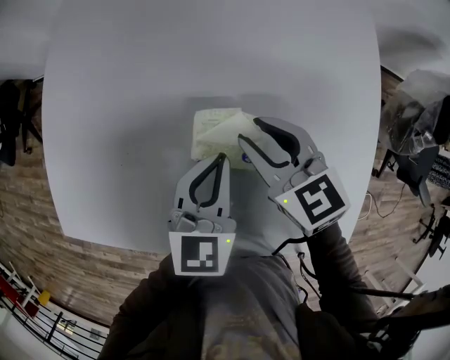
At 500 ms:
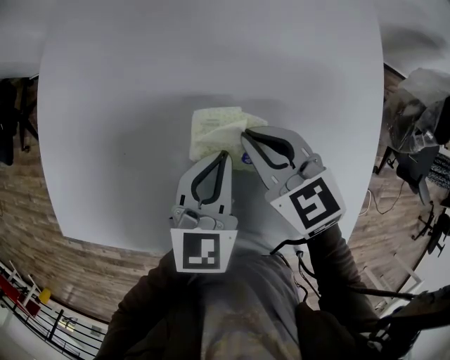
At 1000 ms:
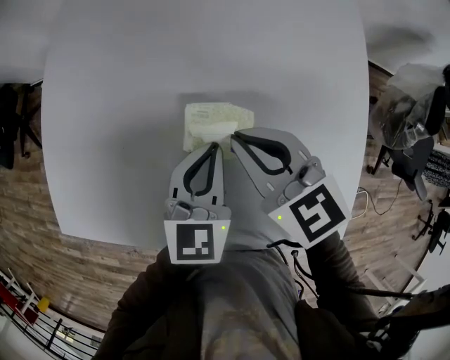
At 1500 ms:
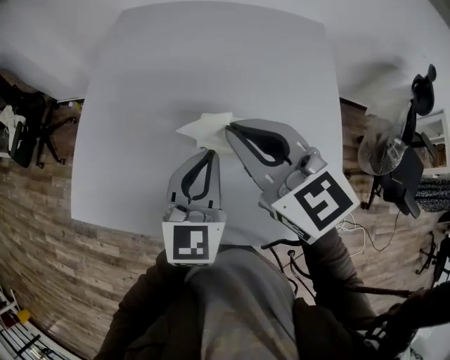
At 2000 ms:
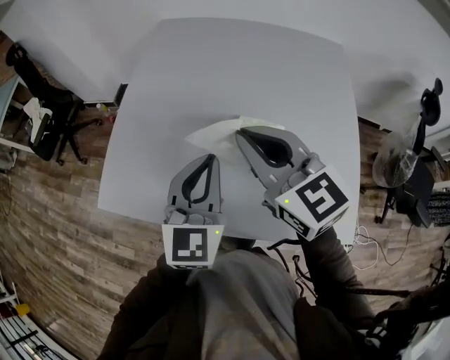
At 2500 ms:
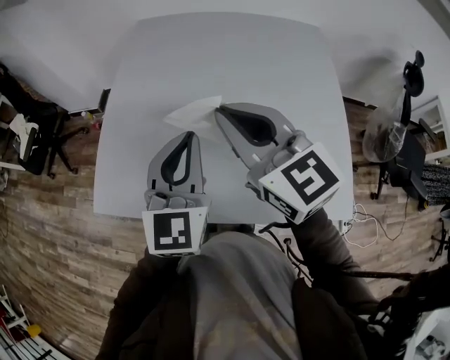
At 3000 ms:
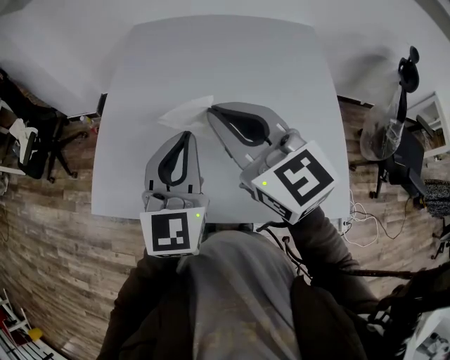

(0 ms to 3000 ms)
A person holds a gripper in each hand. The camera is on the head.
0 ms - 1500 ms: The grippers both shift upward and backward by roughly 20 cm. The right gripper swivels roughly 20 degrees, and closes up.
1500 ms - 3000 ms: Both grippers travel together to the left and upward, about 15 cm.

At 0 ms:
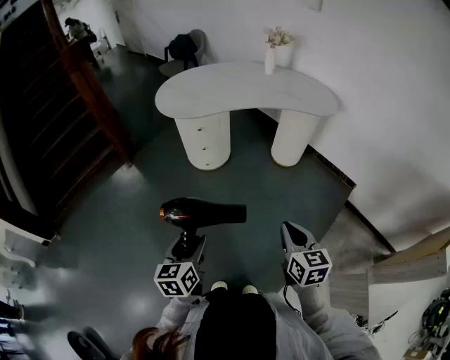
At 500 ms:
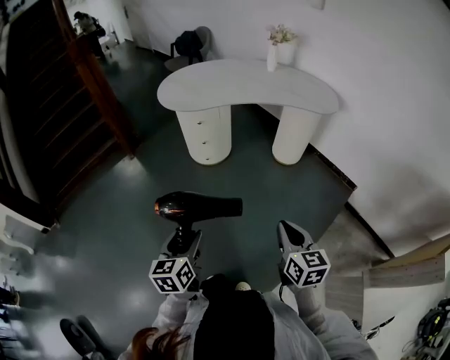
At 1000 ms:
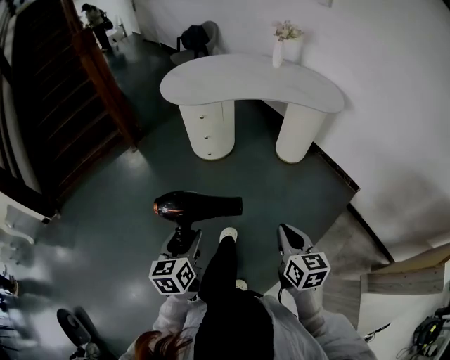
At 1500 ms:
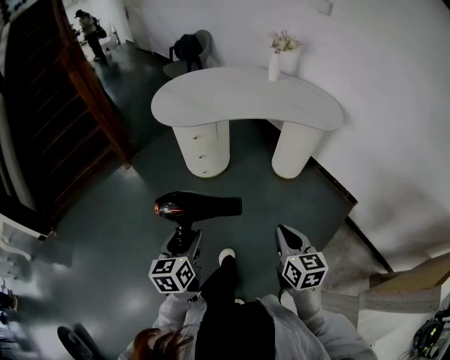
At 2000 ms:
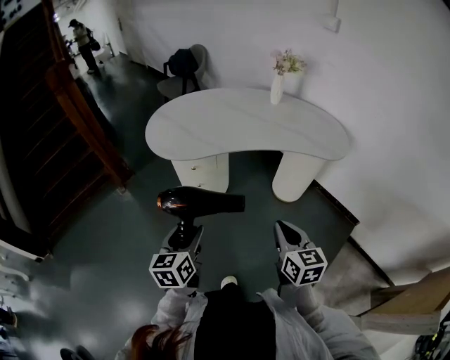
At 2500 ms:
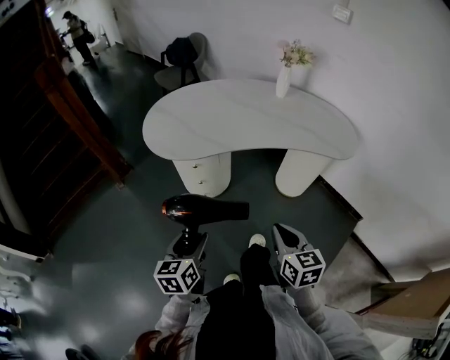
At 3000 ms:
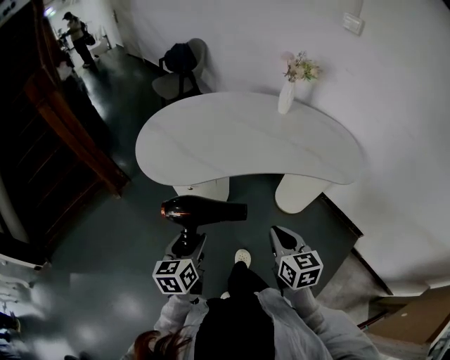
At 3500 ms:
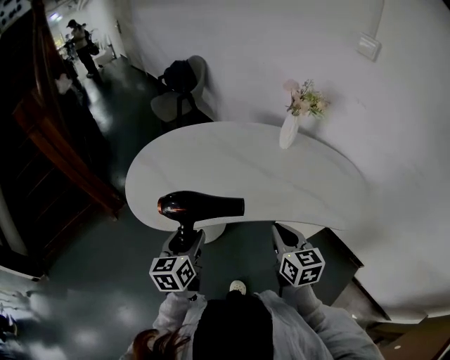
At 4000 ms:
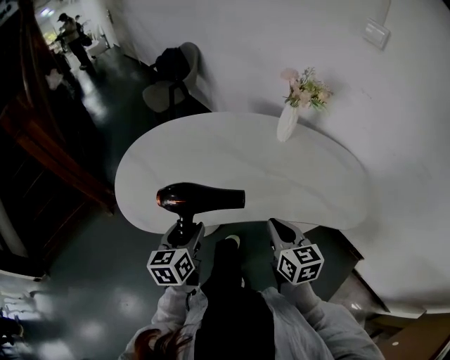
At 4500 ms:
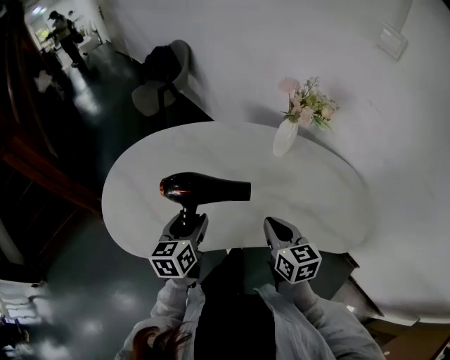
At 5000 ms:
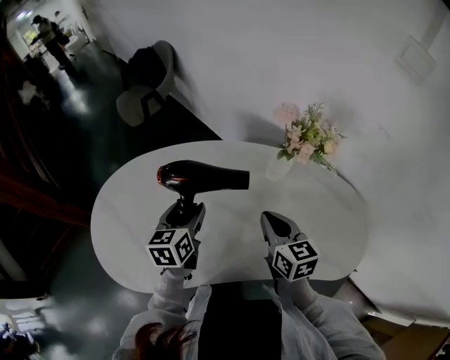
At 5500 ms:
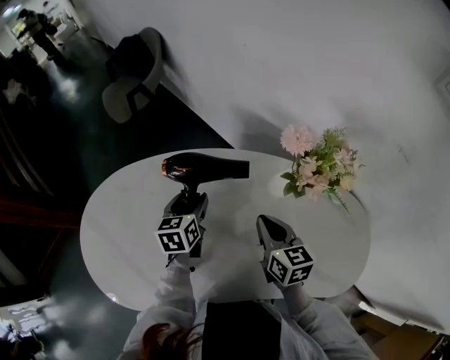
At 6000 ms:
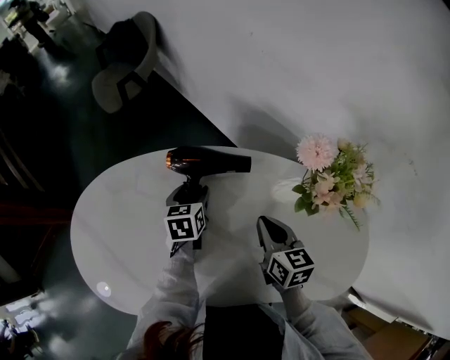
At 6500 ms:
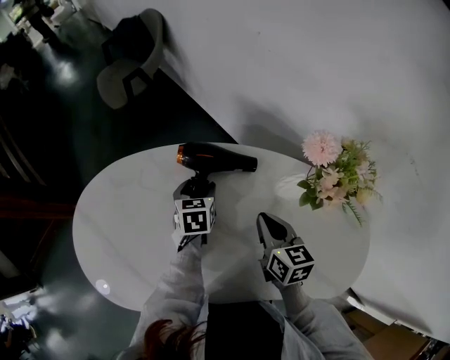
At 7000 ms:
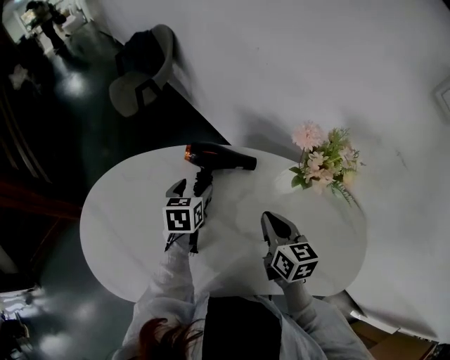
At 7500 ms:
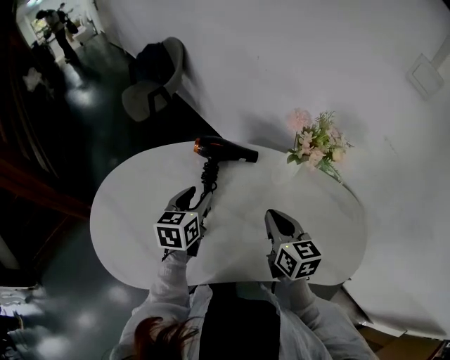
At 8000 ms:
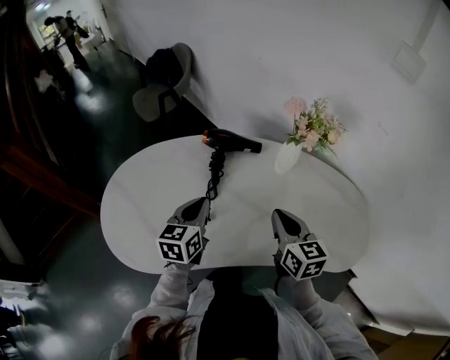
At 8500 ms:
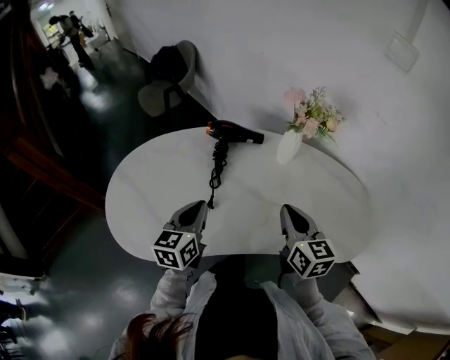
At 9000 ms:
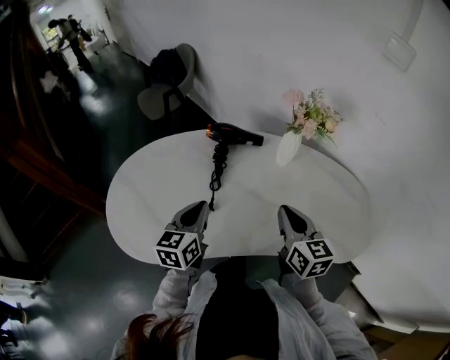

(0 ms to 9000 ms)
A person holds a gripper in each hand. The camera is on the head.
0 ms - 2000 ms: Both grippers move forward, about 25 cm.
2000 ms - 4500 ms: The two grippers travel together, forward, approximately 50 cm.
4500 ms - 7000 ms: The two grippers go some 25 cm forward.
7000 ms - 9000 ms: Both grippers move backward and upward, about 25 cm. The left gripper changes its angle by roughly 20 degrees, and closes its fingers.

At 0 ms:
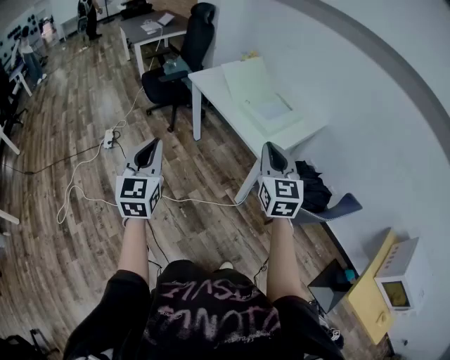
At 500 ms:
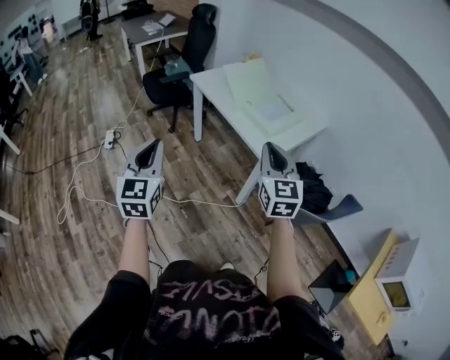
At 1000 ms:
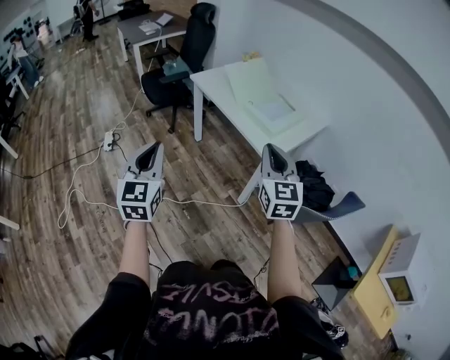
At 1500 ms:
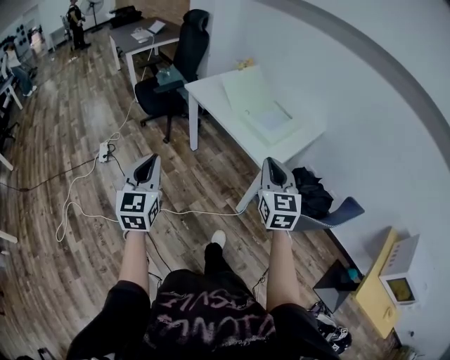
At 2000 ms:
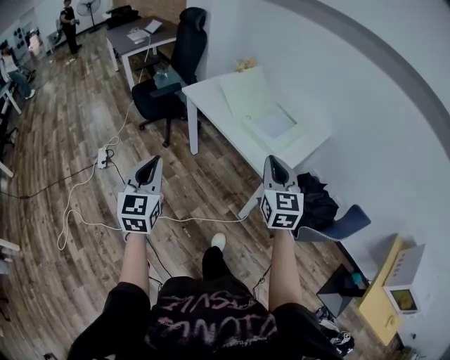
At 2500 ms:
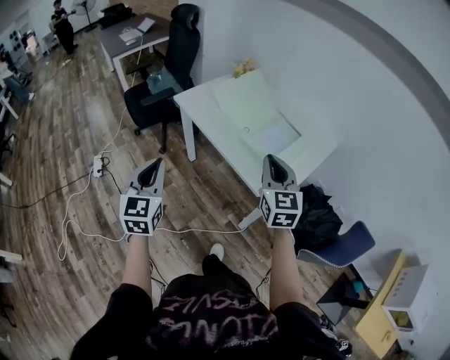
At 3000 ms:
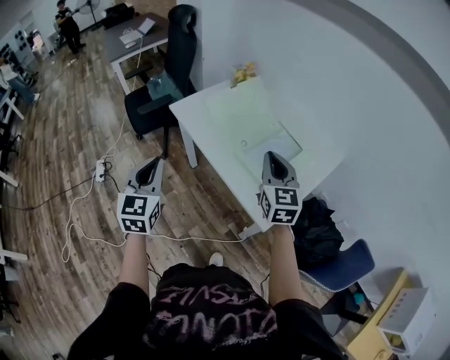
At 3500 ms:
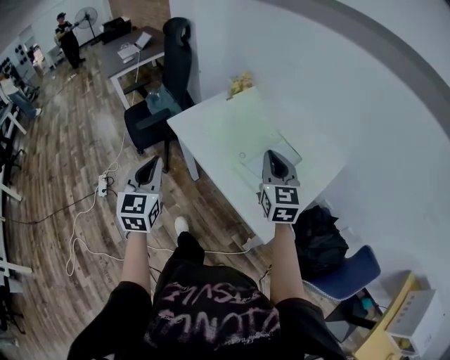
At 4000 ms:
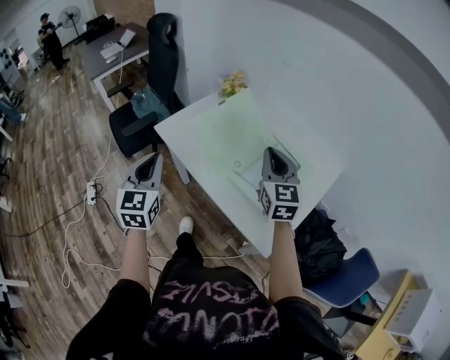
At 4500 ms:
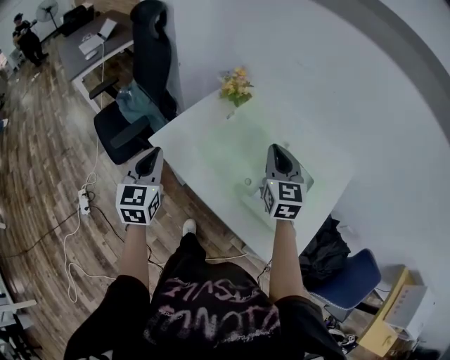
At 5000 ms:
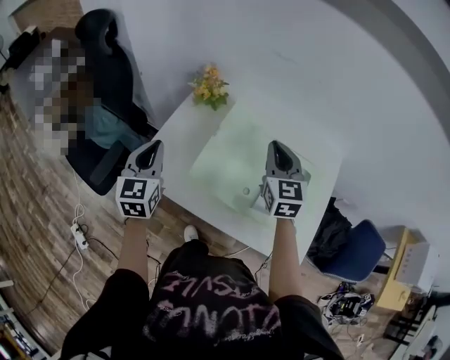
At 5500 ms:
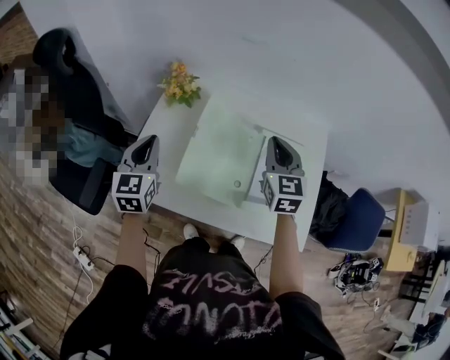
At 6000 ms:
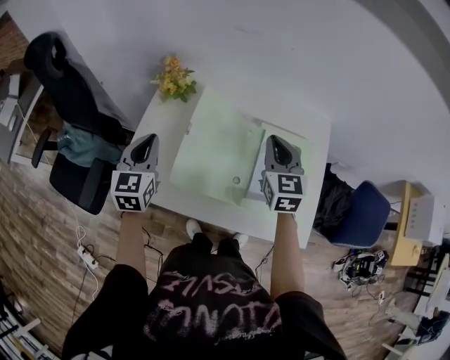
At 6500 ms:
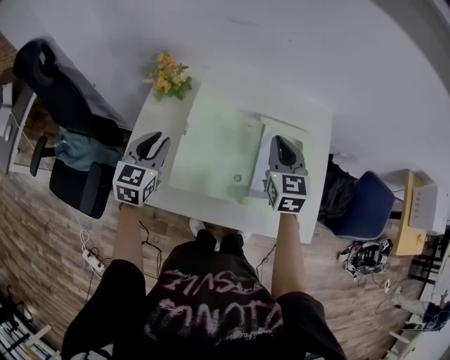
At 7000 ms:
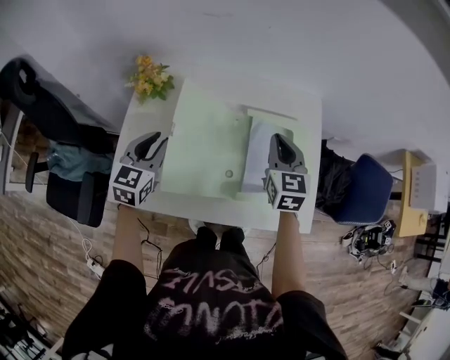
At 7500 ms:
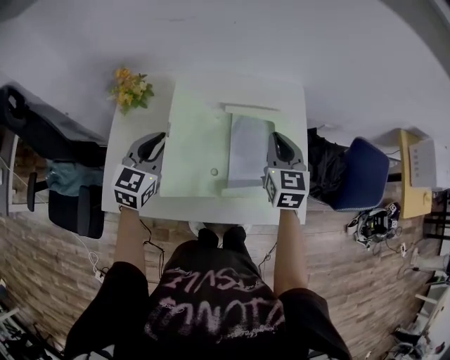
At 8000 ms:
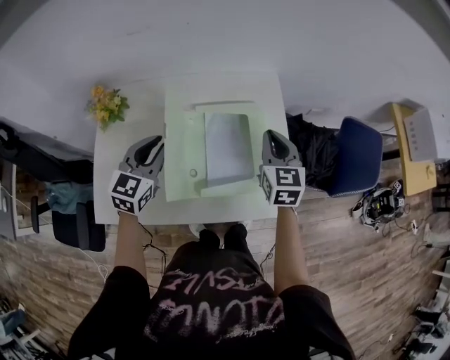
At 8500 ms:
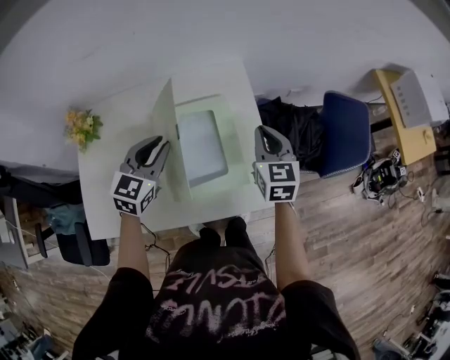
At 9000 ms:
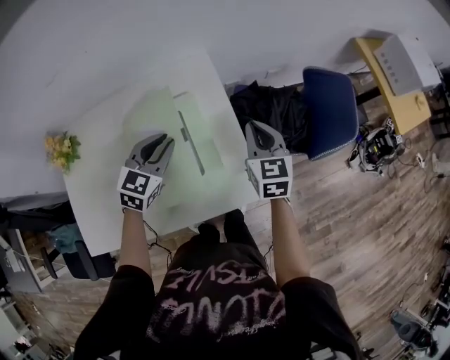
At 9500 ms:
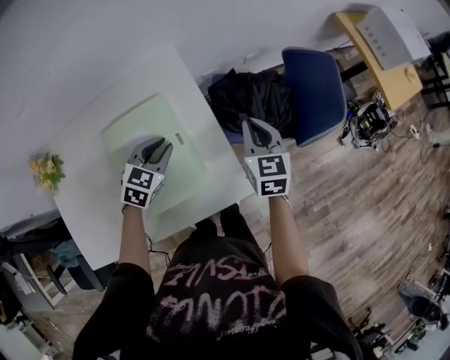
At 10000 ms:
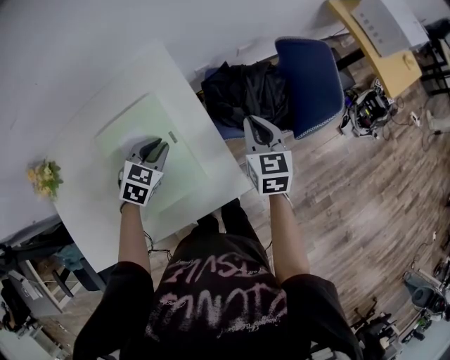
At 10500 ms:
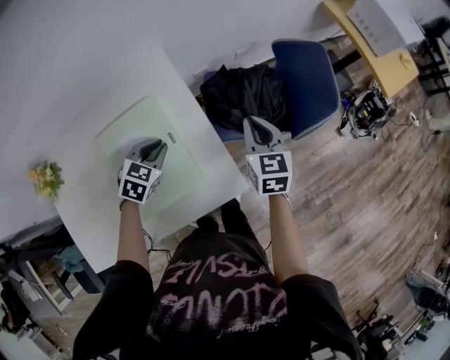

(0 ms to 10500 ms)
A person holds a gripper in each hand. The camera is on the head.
0 ms - 2000 ms: Both grippers travel together forward, about 10 cm.
2000 ms - 4000 ms: The two grippers go roughly 35 cm forward.
4000 ms - 6500 ms: The left gripper ends up about 35 cm from where it was, swivels some 50 degrees, and opens. Meanwhile the right gripper changes place by some 15 cm, and turns by roughly 40 degrees.
6500 ms - 8500 ms: Both grippers move to the right, roughly 30 cm. The left gripper swivels about 30 degrees.
8500 ms - 10500 ms: The right gripper shifts roughly 15 cm to the right; the left gripper moves downward, to the right and forward, approximately 20 cm, and swivels approximately 30 degrees.

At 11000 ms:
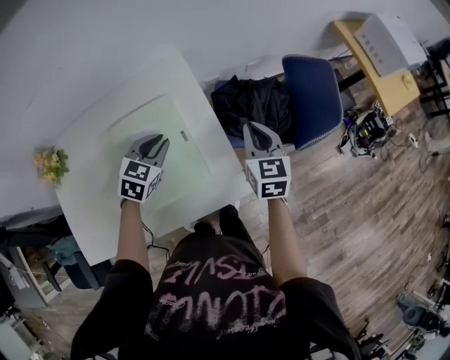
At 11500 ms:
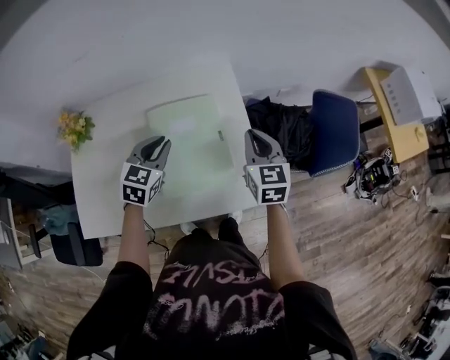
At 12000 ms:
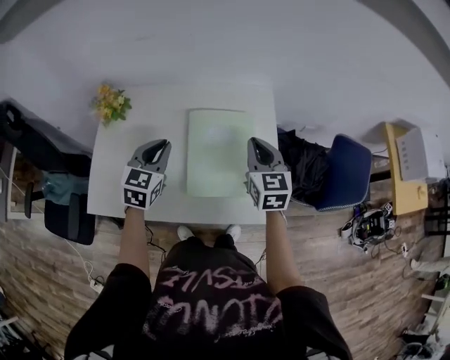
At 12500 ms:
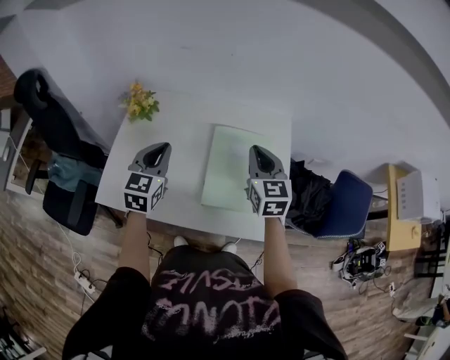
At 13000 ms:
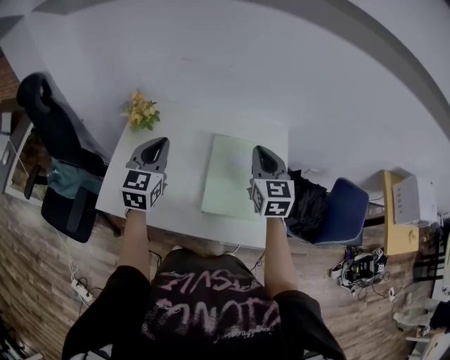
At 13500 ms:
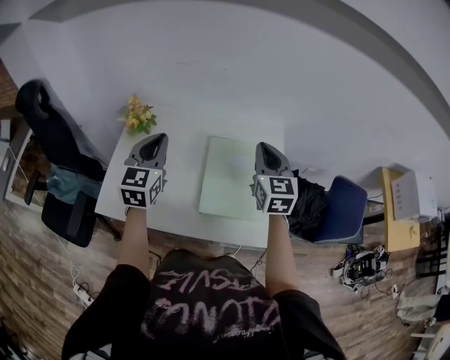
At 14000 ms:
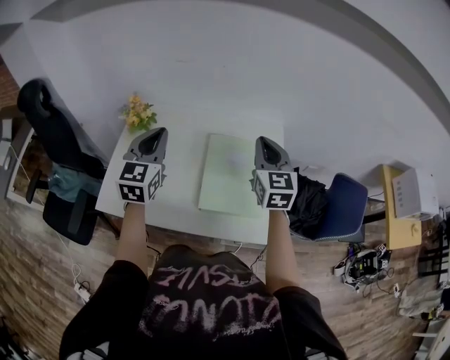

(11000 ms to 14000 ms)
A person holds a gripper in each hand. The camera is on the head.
11000 ms - 12500 ms: The left gripper moves some 35 cm, and changes its angle by some 50 degrees; the right gripper changes place by approximately 30 cm, and rotates some 30 degrees.
12500 ms - 14000 ms: The two grippers go roughly 5 cm upward.

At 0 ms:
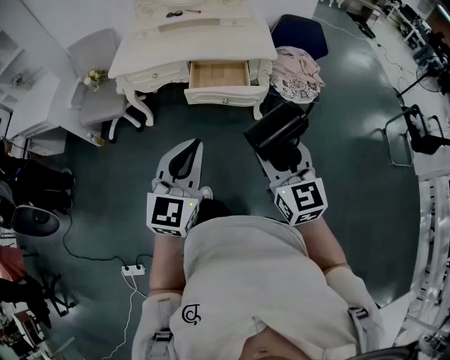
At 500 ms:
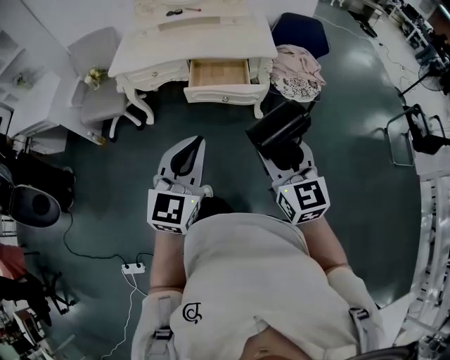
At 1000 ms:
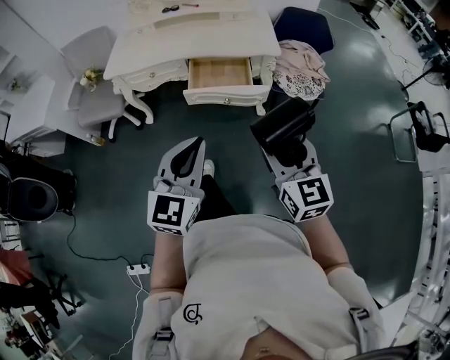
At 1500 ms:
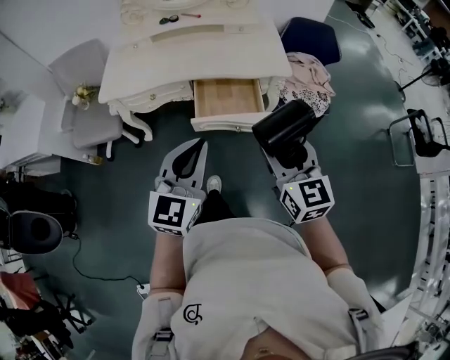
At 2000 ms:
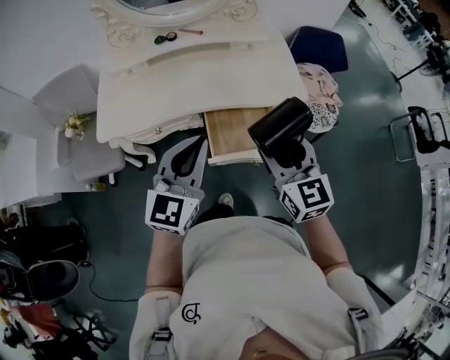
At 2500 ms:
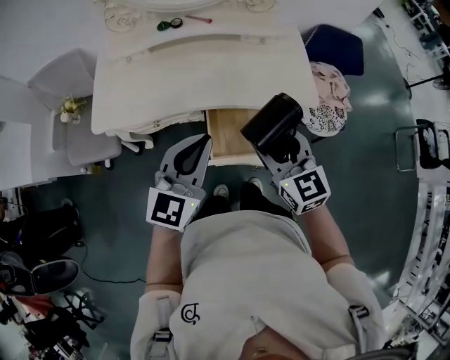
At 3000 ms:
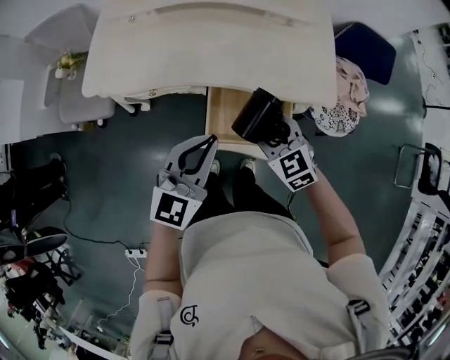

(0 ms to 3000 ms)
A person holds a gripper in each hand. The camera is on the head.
0 ms - 1500 ms: Both grippers travel together forward, about 20 cm.
1500 ms - 3000 ms: The left gripper travels forward by some 25 cm, while the right gripper moves forward and downward, approximately 35 cm, and swivels roughly 40 degrees.
